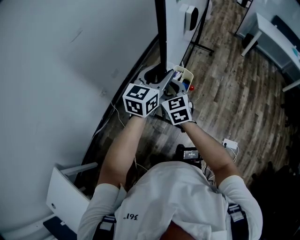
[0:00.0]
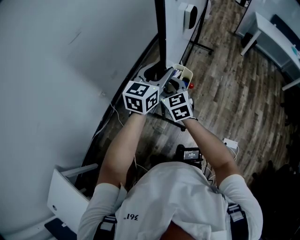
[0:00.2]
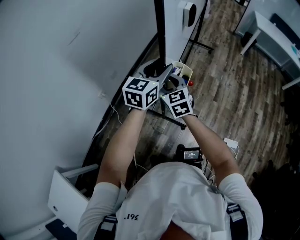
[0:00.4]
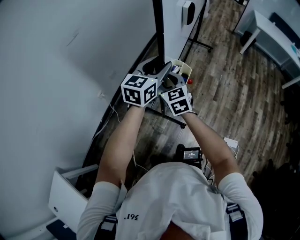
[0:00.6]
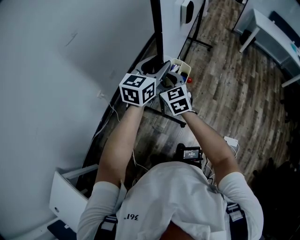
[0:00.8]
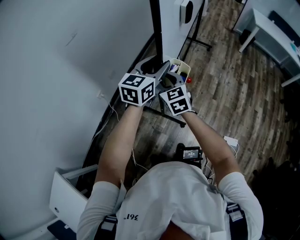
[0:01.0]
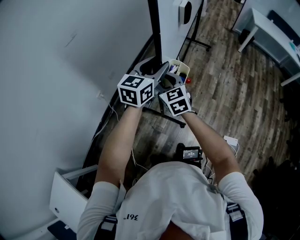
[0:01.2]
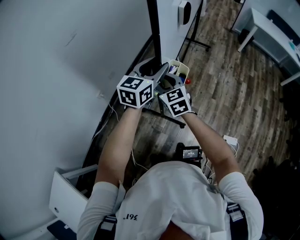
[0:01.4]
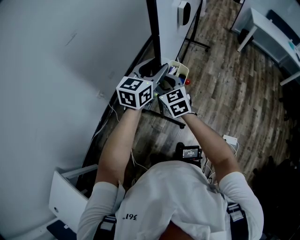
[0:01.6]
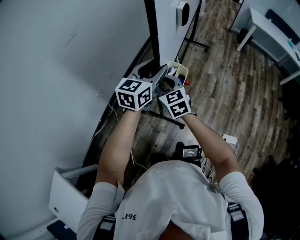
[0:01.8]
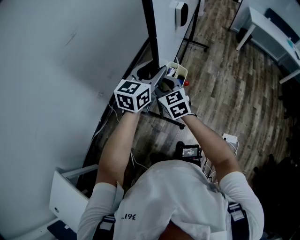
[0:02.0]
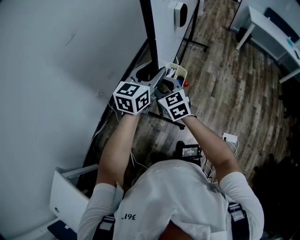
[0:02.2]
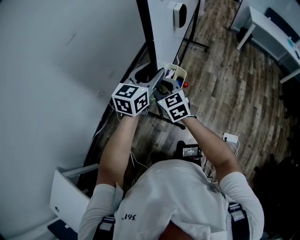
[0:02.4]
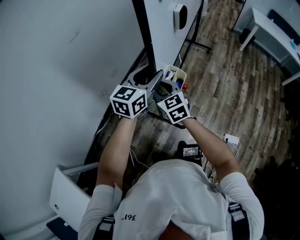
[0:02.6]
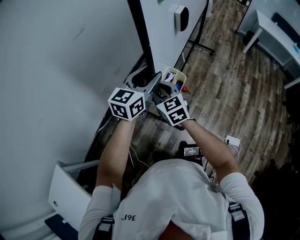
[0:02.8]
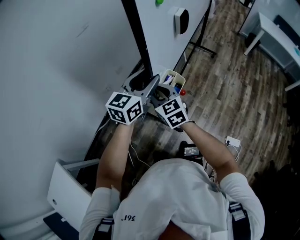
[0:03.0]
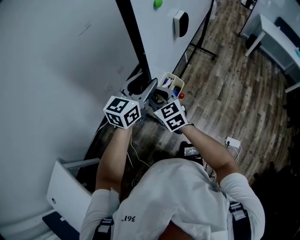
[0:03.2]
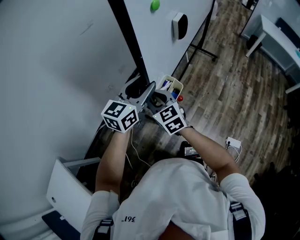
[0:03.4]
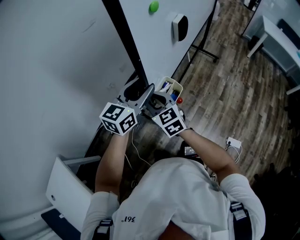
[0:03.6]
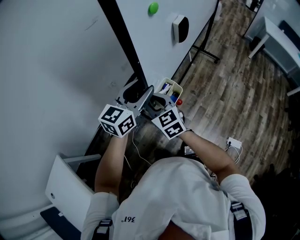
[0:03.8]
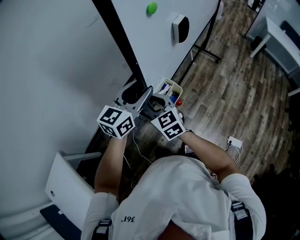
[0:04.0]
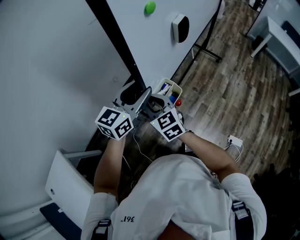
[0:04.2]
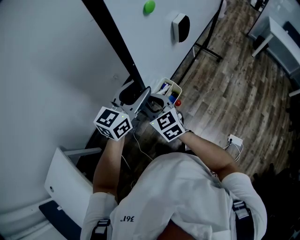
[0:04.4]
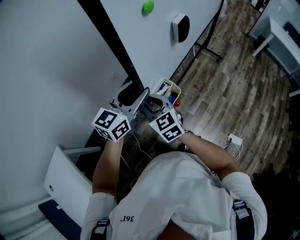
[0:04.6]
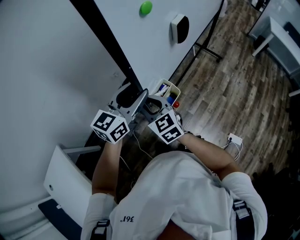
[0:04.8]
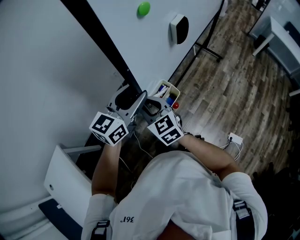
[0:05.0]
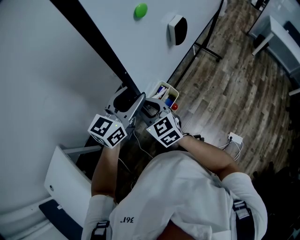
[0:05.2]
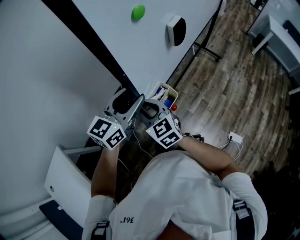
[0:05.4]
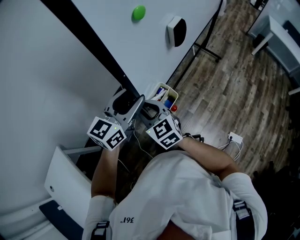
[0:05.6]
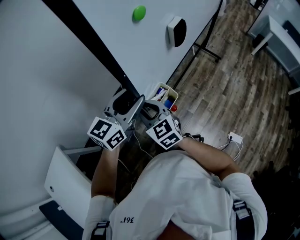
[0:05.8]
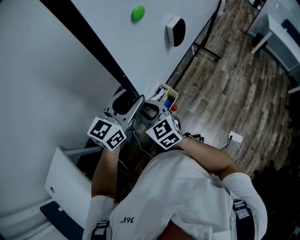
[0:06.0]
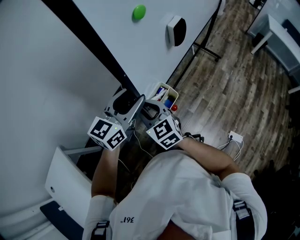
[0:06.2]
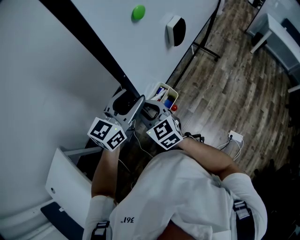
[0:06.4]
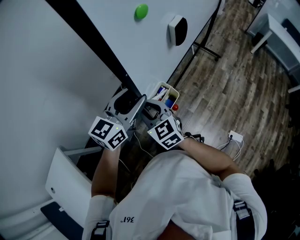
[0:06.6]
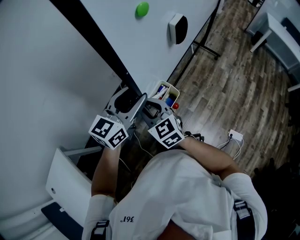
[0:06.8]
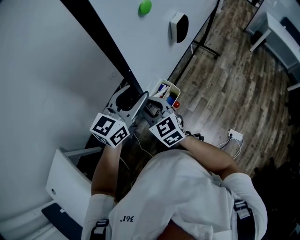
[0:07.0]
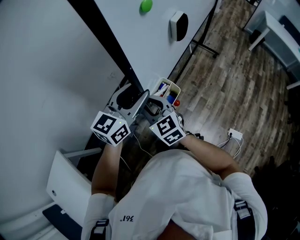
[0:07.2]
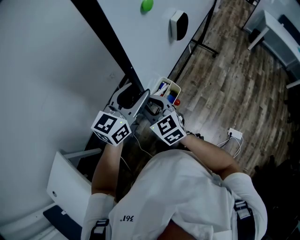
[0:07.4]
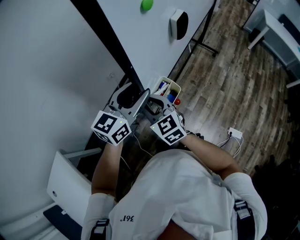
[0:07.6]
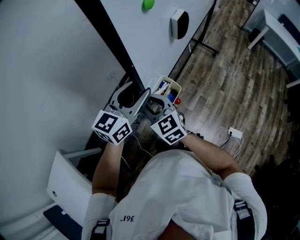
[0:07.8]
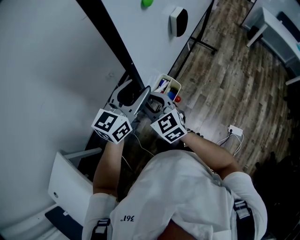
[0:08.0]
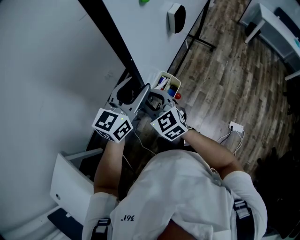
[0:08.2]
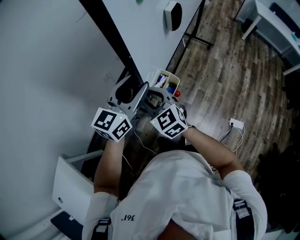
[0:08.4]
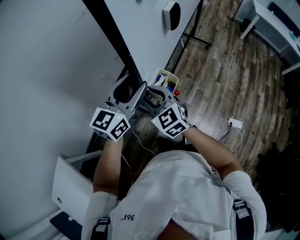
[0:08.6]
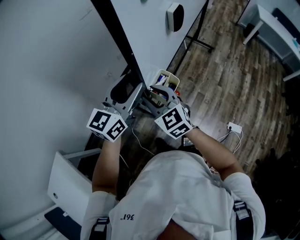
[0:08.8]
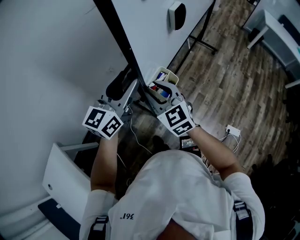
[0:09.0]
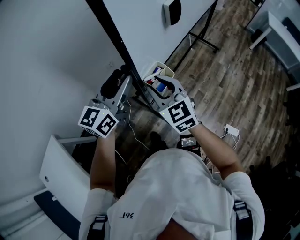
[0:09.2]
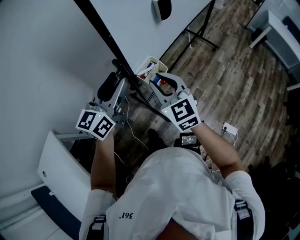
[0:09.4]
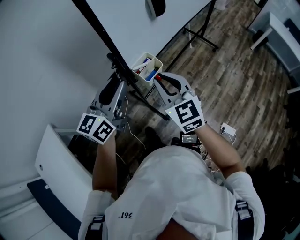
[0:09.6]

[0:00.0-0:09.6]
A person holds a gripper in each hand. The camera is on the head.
0:00.0 to 0:01.6: There are only small adjustments of the grippers.
0:01.6 to 0:03.2: The right gripper goes some 15 cm backward and to the left. The left gripper moves to the left and backward, approximately 15 cm.
0:03.2 to 0:04.8: Both grippers move backward and to the left, approximately 15 cm.
0:04.8 to 0:08.0: There are only small adjustments of the grippers.
0:08.0 to 0:09.6: The left gripper moves backward, roughly 10 cm, and rotates about 20 degrees, while the right gripper heads to the right, backward and upward, covering some 20 cm.

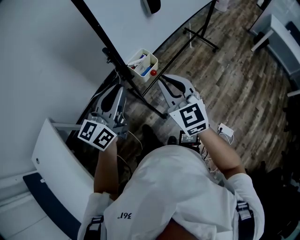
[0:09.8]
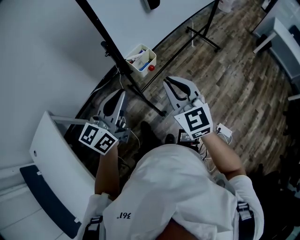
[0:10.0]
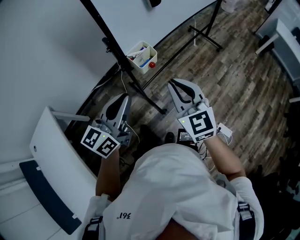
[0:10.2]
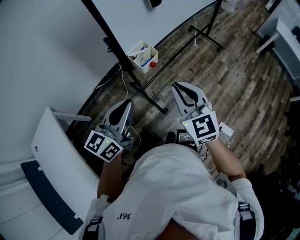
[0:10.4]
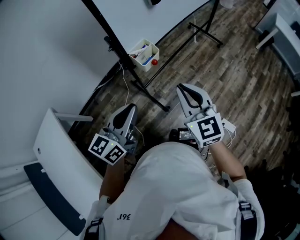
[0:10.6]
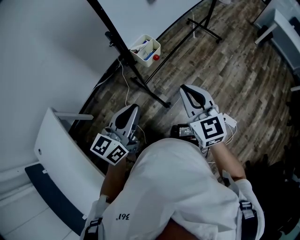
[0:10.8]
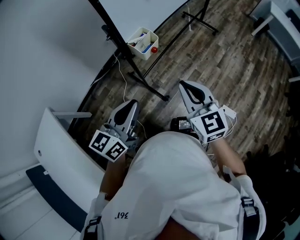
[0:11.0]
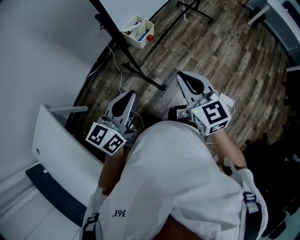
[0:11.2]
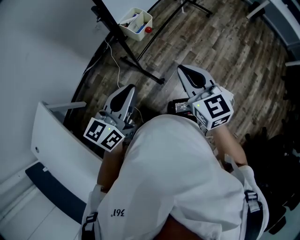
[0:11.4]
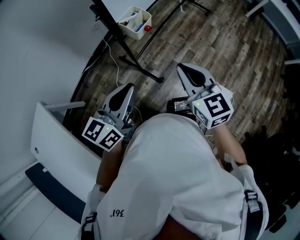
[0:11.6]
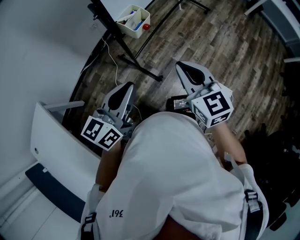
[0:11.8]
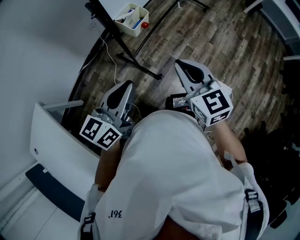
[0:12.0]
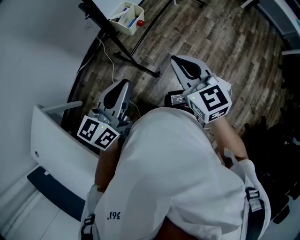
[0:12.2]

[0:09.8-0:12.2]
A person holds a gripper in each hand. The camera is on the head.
0:09.8 to 0:11.0: The left gripper goes about 15 cm backward and downward, while the right gripper moves backward, roughly 10 cm.
0:11.0 to 0:12.2: The grippers stay close to where they were, moving slightly.

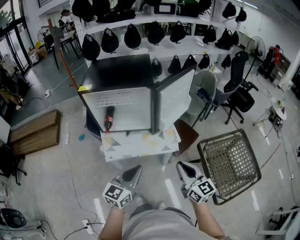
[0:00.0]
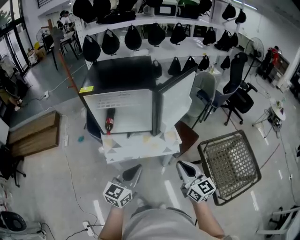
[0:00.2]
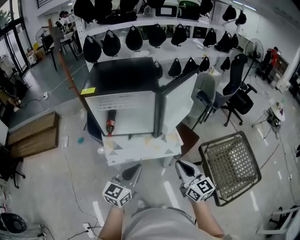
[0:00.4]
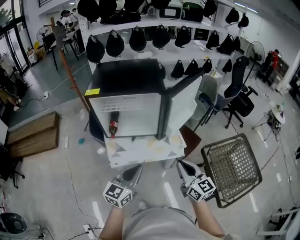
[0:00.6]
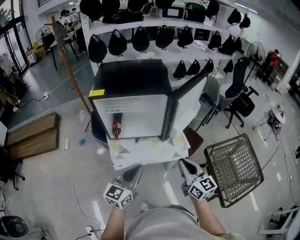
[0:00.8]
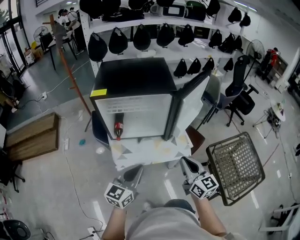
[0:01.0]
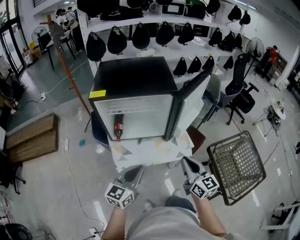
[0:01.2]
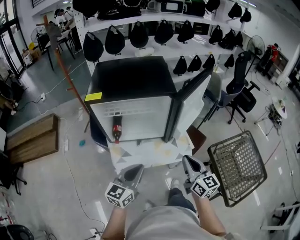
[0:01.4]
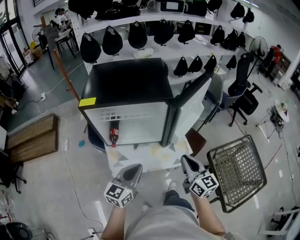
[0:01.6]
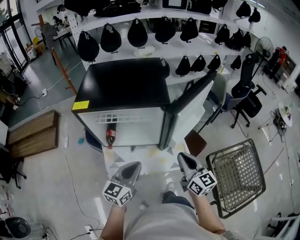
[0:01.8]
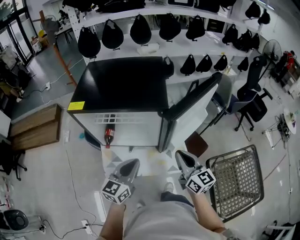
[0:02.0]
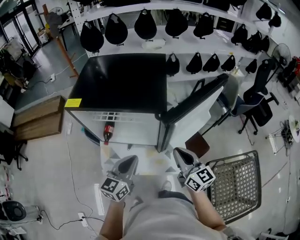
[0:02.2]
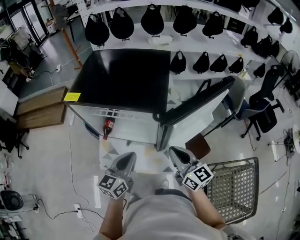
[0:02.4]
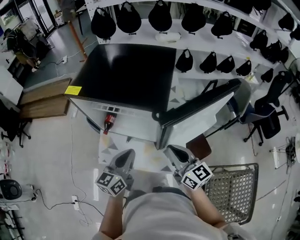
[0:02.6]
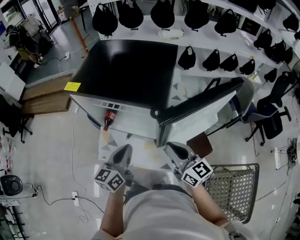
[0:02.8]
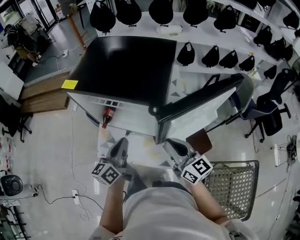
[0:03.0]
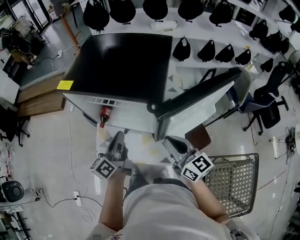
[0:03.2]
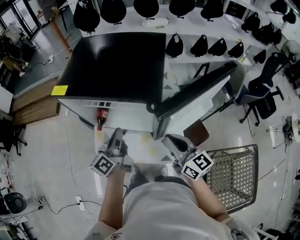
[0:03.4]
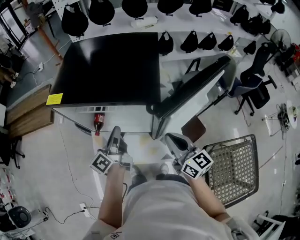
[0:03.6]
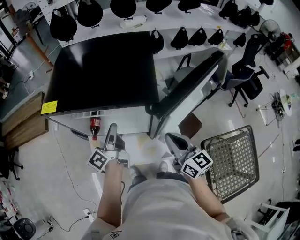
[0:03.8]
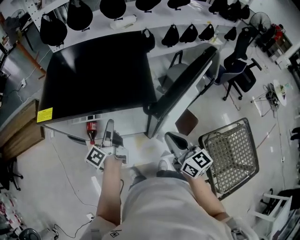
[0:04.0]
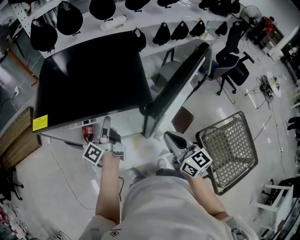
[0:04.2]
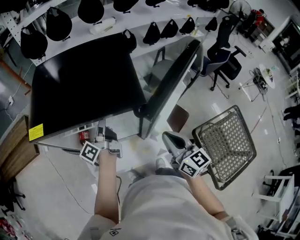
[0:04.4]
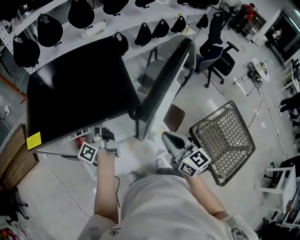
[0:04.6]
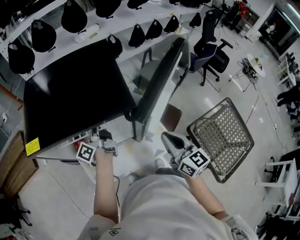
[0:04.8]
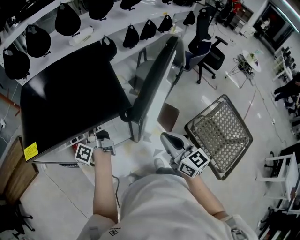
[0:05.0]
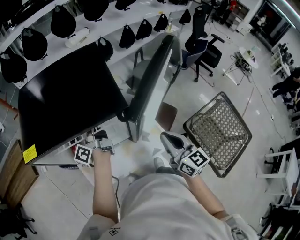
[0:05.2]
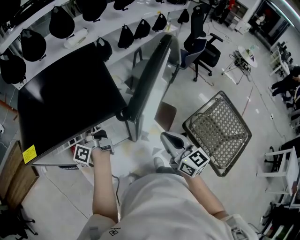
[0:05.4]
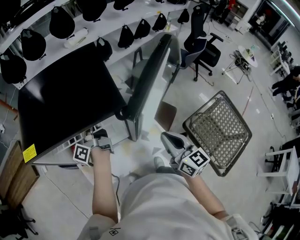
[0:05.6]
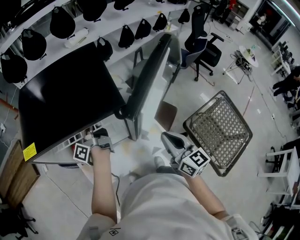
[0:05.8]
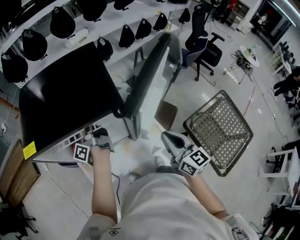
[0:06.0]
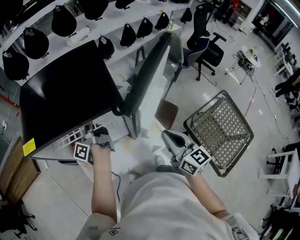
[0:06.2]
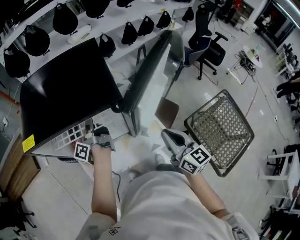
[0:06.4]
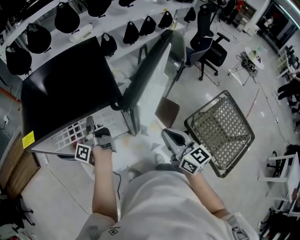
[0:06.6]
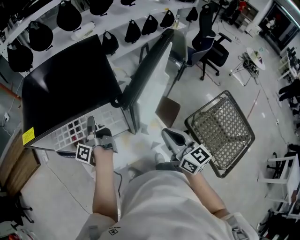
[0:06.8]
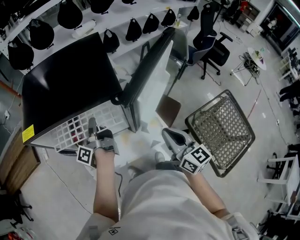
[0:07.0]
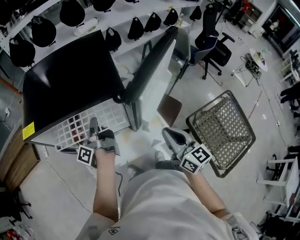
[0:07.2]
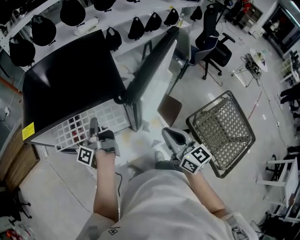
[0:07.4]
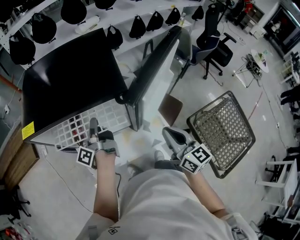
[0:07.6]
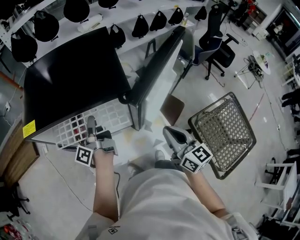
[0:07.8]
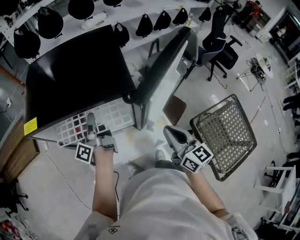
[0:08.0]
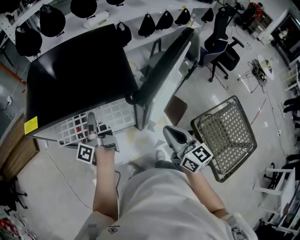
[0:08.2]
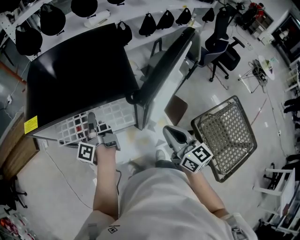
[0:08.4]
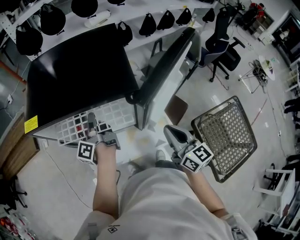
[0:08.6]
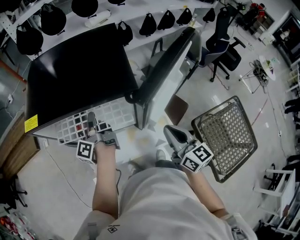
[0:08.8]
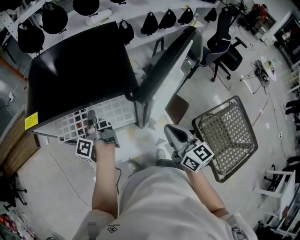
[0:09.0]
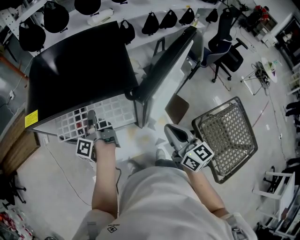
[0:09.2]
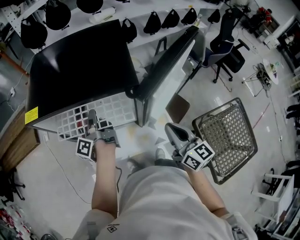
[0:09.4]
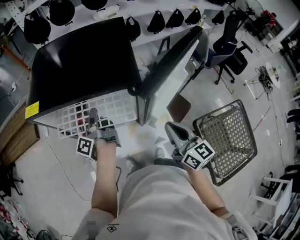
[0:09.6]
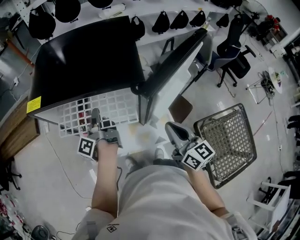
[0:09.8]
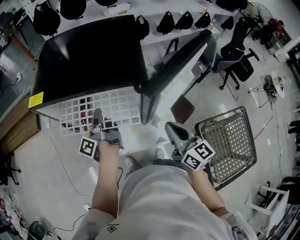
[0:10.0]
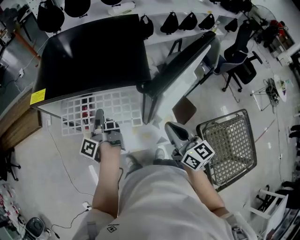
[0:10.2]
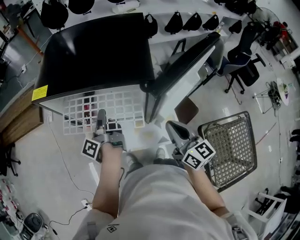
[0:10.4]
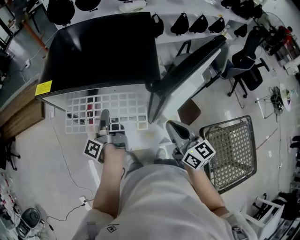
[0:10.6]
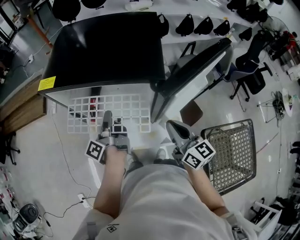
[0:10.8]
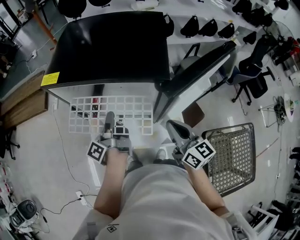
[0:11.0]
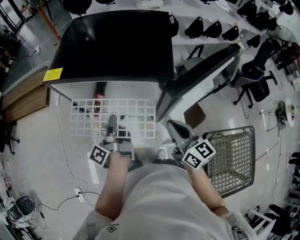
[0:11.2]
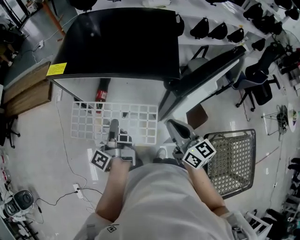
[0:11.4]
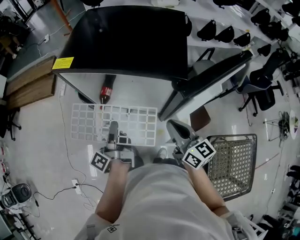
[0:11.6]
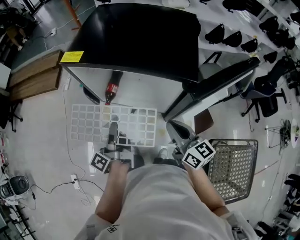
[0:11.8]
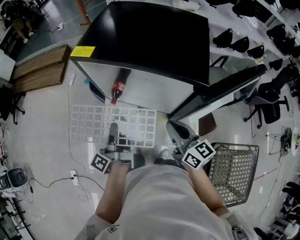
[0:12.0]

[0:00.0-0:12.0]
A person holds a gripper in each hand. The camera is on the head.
0:00.0 to 0:01.6: Both grippers move forward and to the left, roughly 15 cm.
0:01.6 to 0:03.0: The left gripper moves roughly 15 cm, and changes its angle by approximately 40 degrees; the right gripper changes place by some 15 cm, and turns by some 30 degrees.
0:03.0 to 0:04.4: The right gripper swivels some 30 degrees, while the left gripper heads forward, covering approximately 15 cm, swivels roughly 40 degrees, and opens its fingers.
0:04.4 to 0:06.0: The left gripper closes its fingers; the right gripper ends up some 5 cm from where it was.
0:06.0 to 0:07.6: The left gripper shifts some 5 cm backward.
0:07.6 to 0:09.0: The left gripper opens, then closes once more.
0:09.0 to 0:10.4: The left gripper goes roughly 5 cm backward.
0:10.4 to 0:12.0: The left gripper travels to the left and backward by roughly 15 cm, while the right gripper is displaced to the left by about 10 cm, and turns by approximately 20 degrees.
